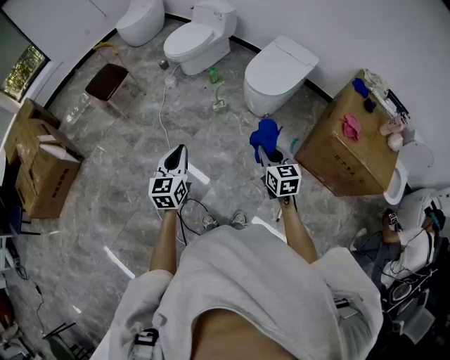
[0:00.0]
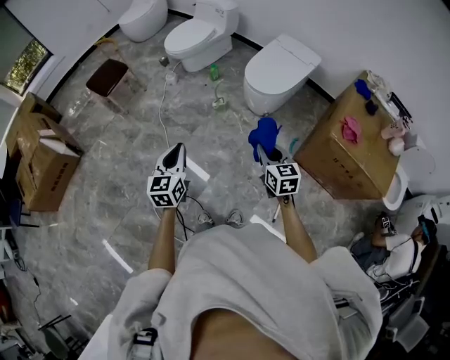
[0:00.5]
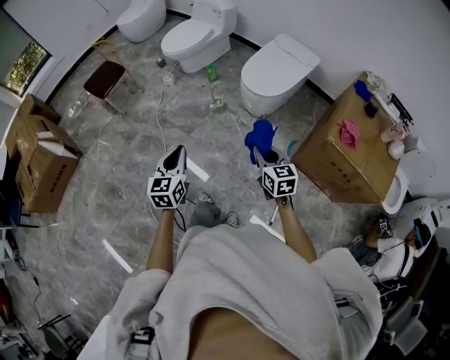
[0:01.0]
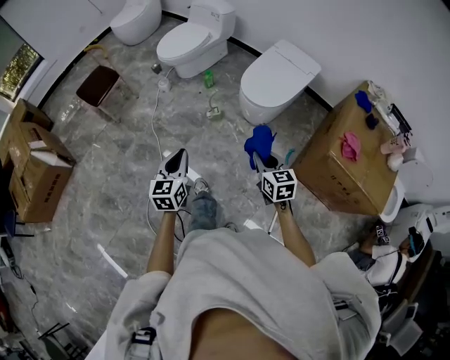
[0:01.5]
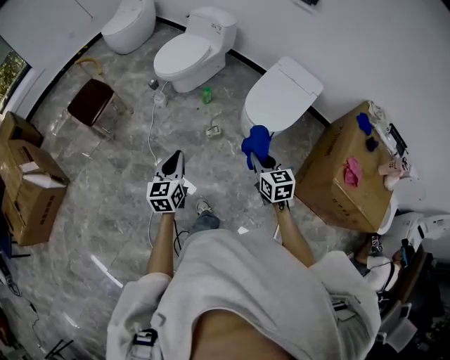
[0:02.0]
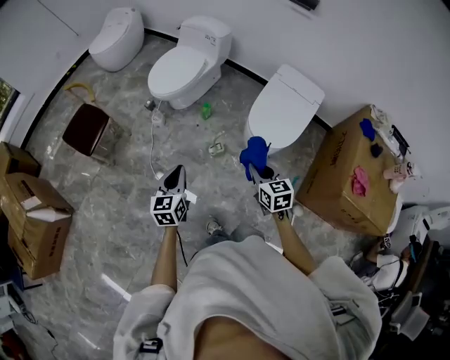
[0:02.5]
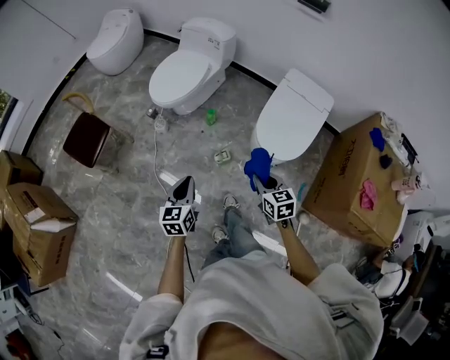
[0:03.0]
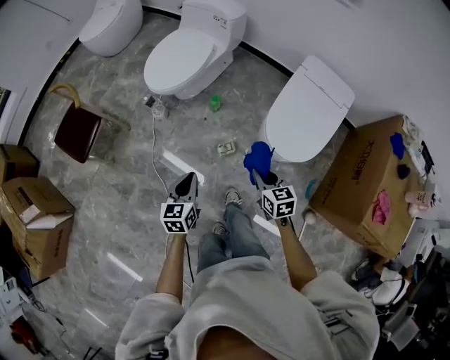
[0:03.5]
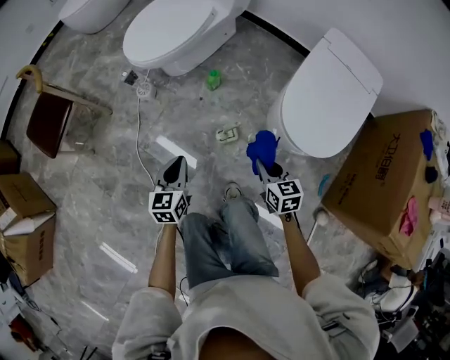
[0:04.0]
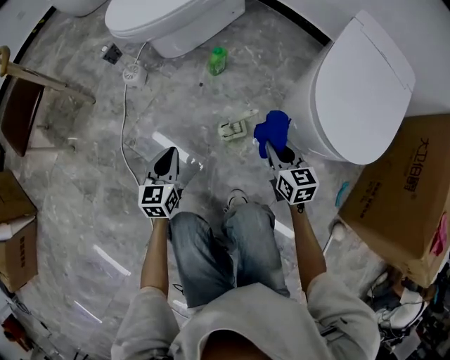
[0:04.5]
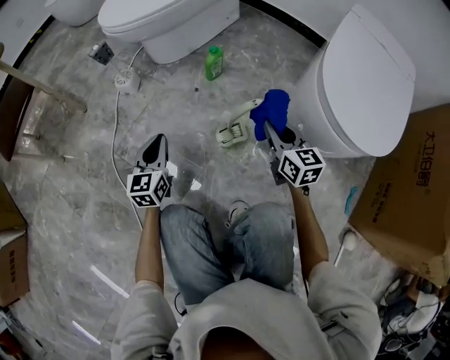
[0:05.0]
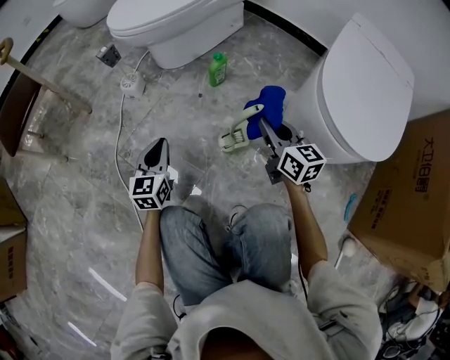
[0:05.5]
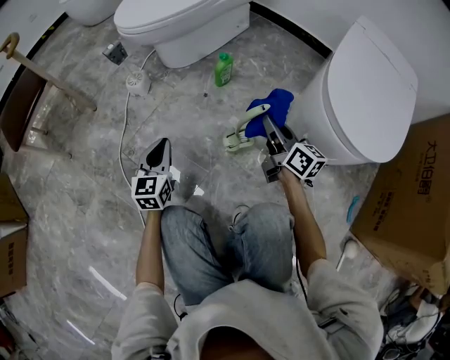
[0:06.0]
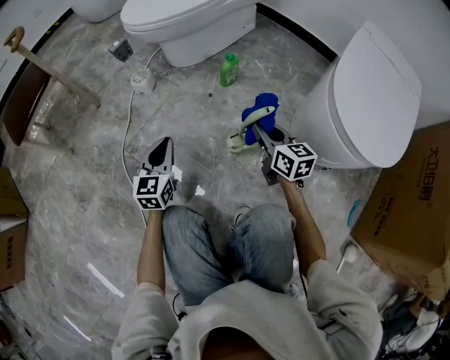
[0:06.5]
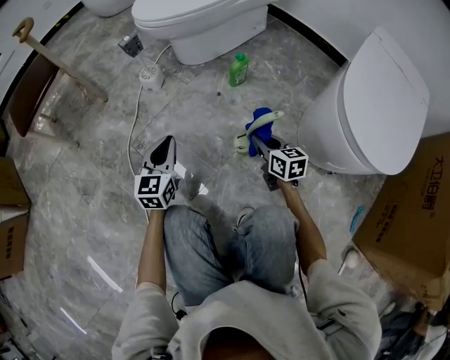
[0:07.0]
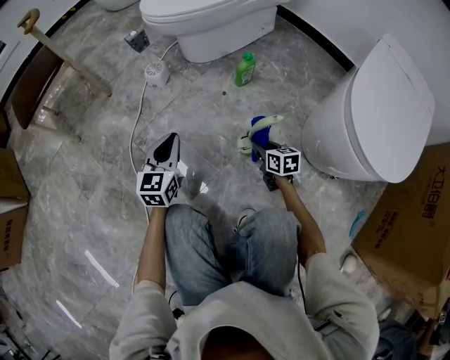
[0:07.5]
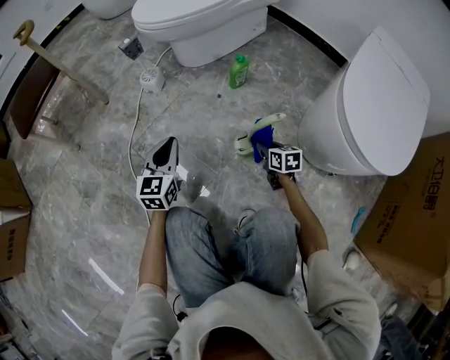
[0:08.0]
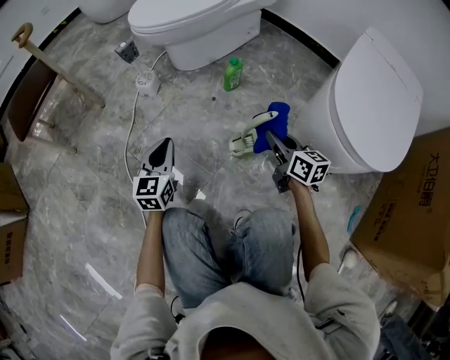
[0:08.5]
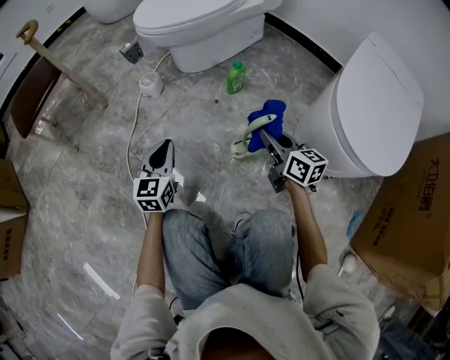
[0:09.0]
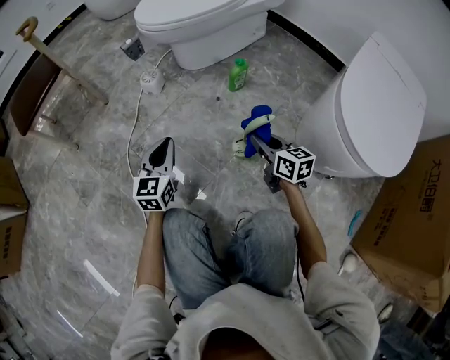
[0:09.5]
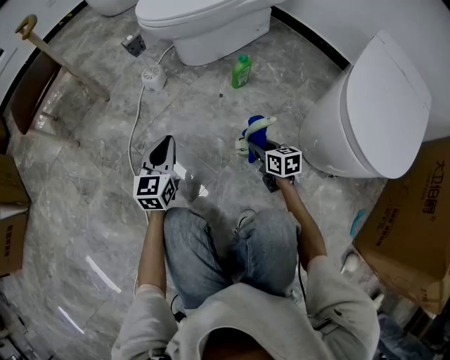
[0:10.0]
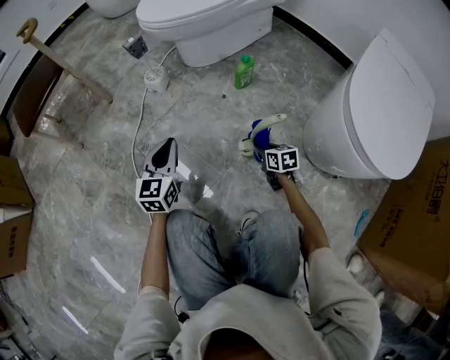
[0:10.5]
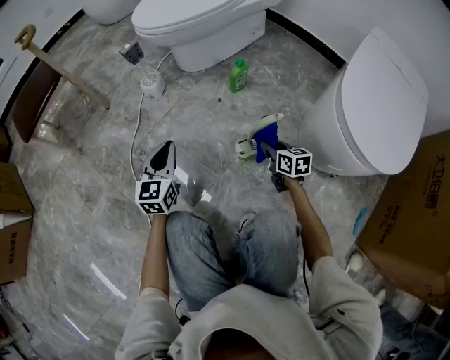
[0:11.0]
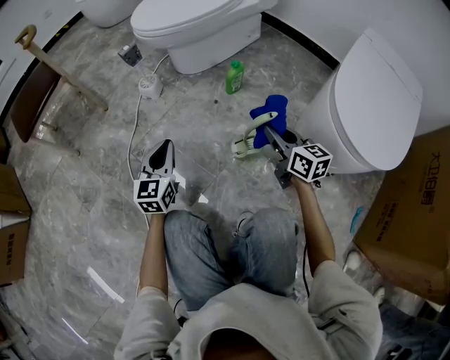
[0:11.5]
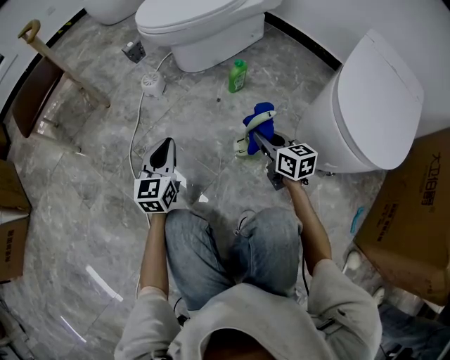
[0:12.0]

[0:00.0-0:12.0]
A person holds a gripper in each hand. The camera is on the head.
0:00.0 to 0:02.0: Both grippers move forward, some 25 cm.
0:02.0 to 0:04.0: The two grippers go approximately 40 cm downward and forward.
0:04.0 to 0:06.0: The right gripper travels downward and forward by roughly 20 cm, and points its fingers about 30 degrees further upward, while the left gripper shifts some 25 cm downward.
0:06.0 to 0:08.0: The right gripper shifts about 20 cm downward, and tilts its fingers some 40 degrees downward.
0:08.0 to 0:10.0: The right gripper moves roughly 20 cm upward and comes back.
0:10.0 to 0:12.0: The right gripper goes up and down, some 25 cm each way, reversing 2 times.

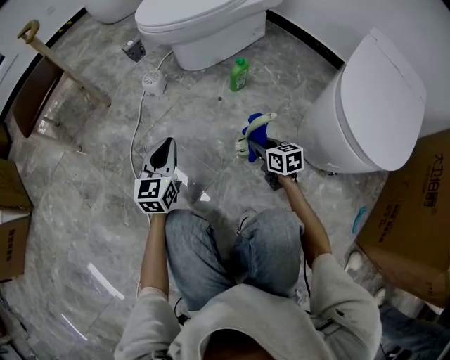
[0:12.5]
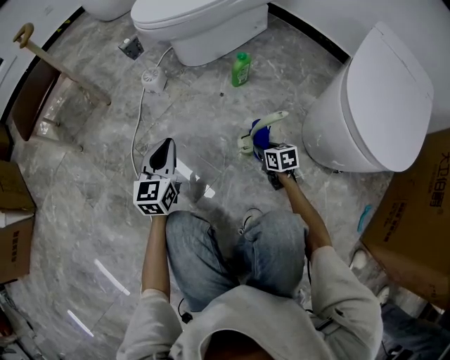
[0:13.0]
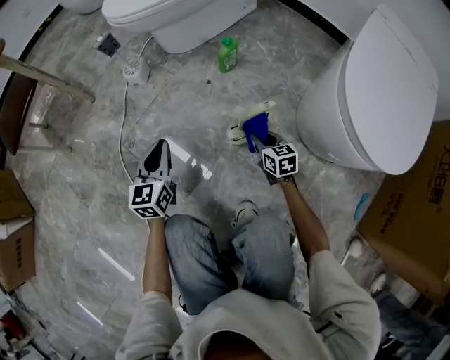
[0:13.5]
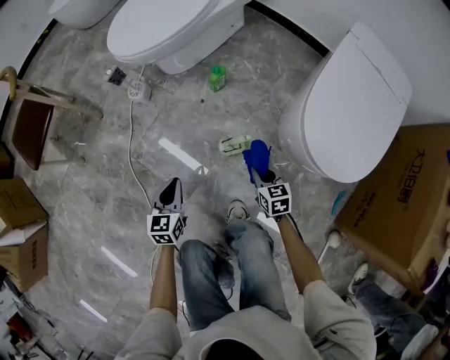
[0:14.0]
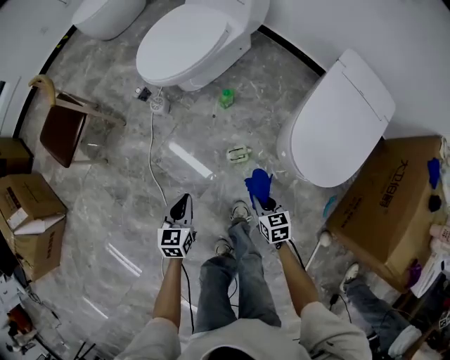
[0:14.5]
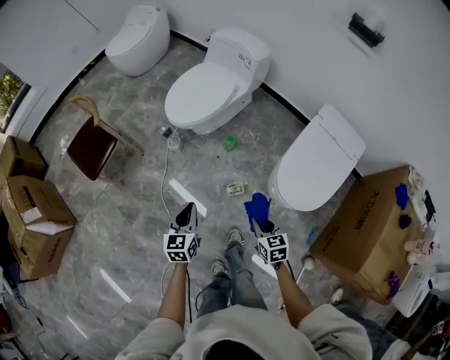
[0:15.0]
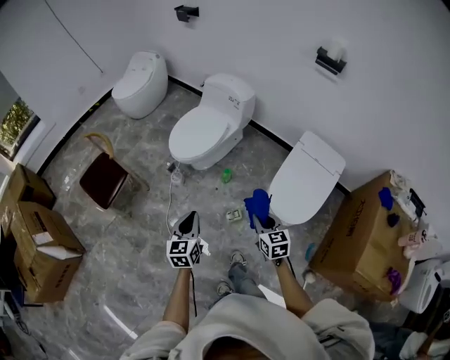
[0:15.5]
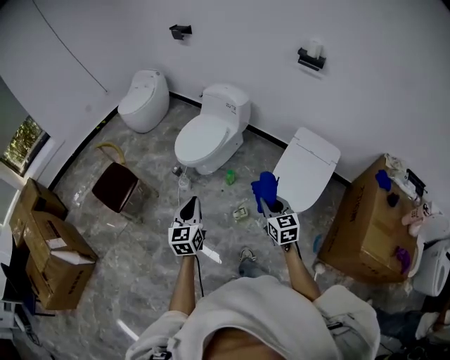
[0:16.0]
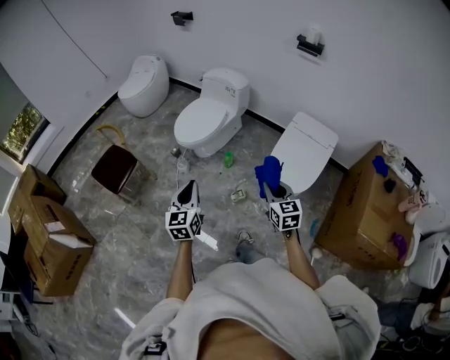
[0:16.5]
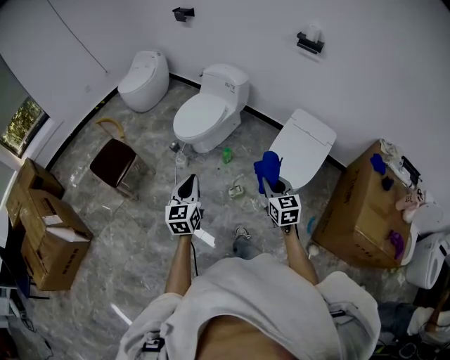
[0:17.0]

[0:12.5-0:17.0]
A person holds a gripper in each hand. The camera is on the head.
0:12.5 to 0:14.5: Both grippers move upward and backward, some 25 cm. The left gripper rotates approximately 20 degrees.
0:14.5 to 0:17.0: Both grippers travel together upward, approximately 40 cm. The right gripper turns by roughly 30 degrees. The left gripper rotates about 30 degrees.

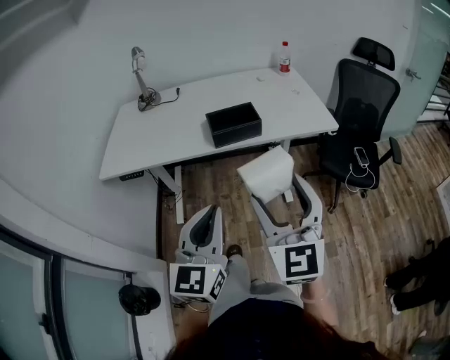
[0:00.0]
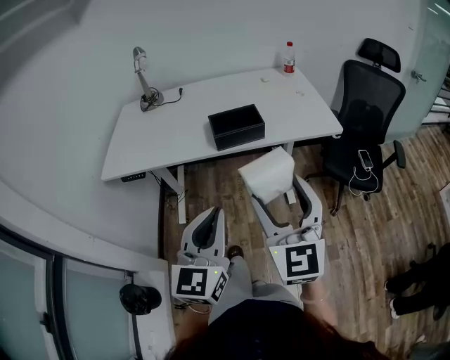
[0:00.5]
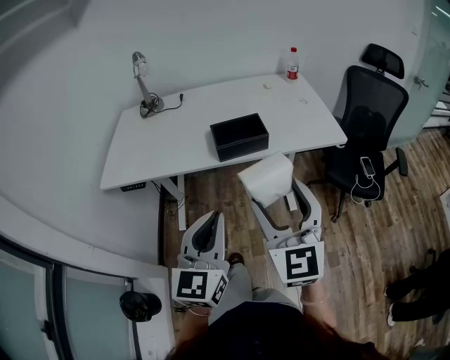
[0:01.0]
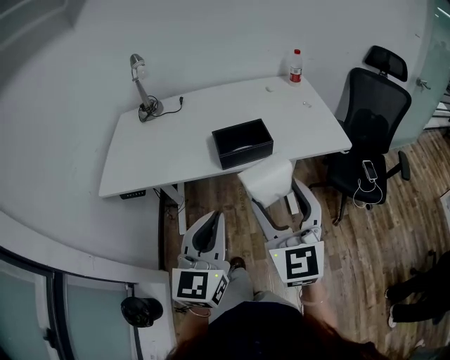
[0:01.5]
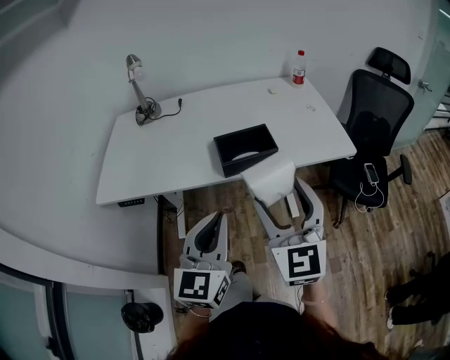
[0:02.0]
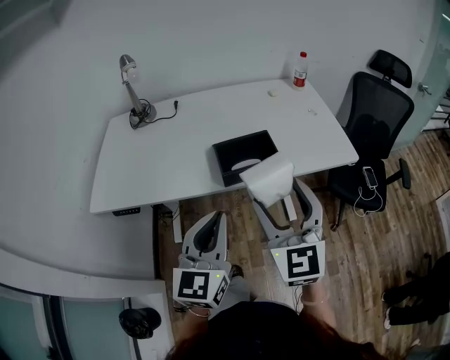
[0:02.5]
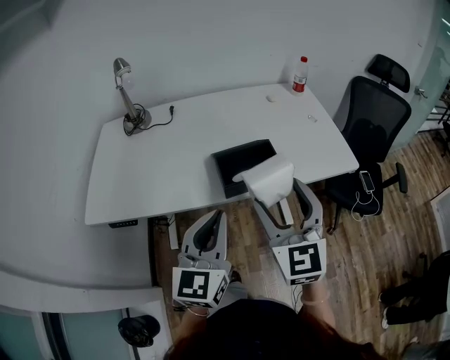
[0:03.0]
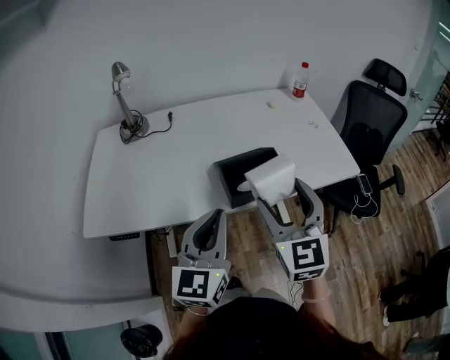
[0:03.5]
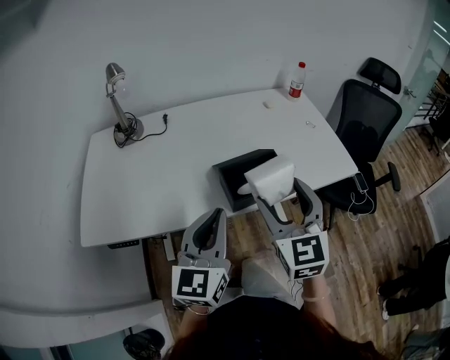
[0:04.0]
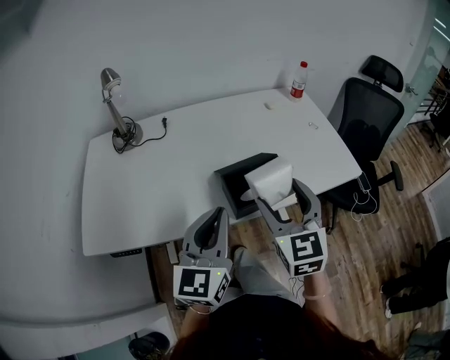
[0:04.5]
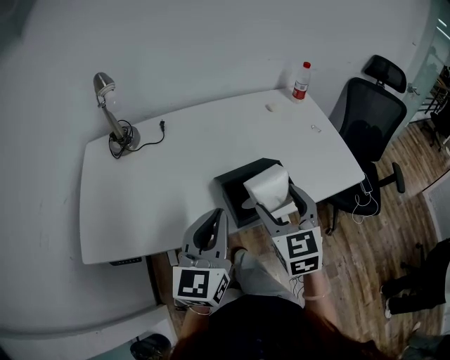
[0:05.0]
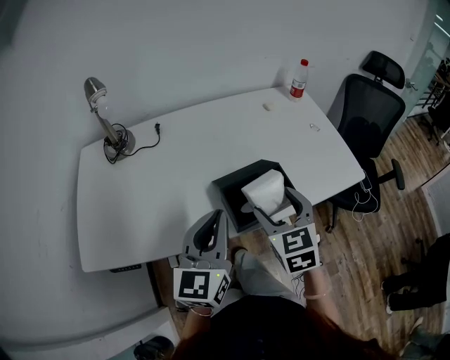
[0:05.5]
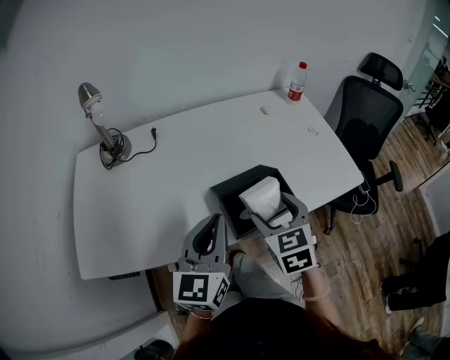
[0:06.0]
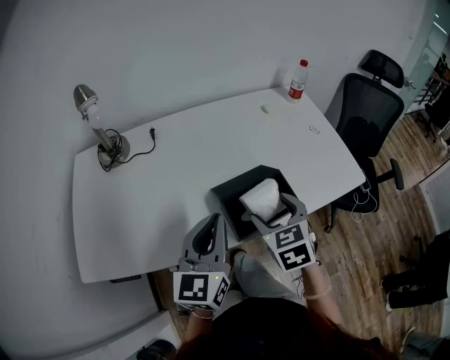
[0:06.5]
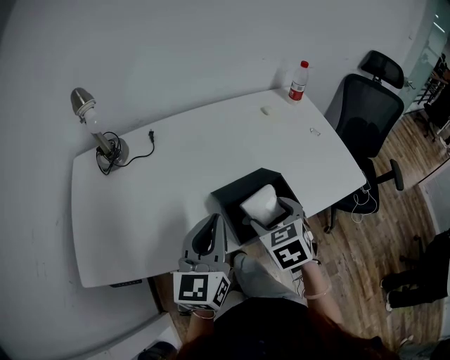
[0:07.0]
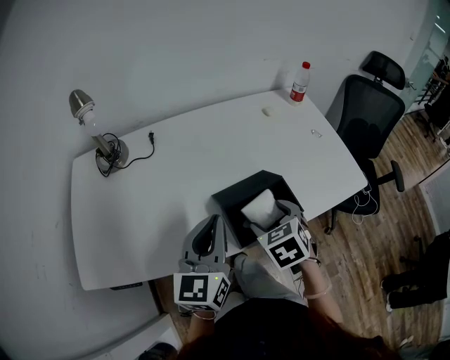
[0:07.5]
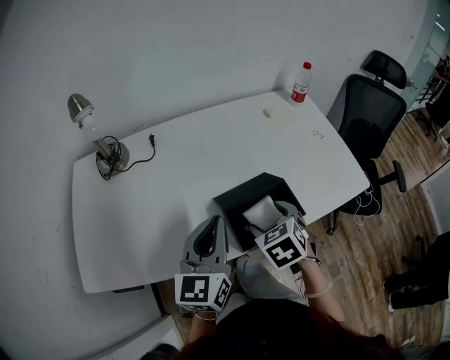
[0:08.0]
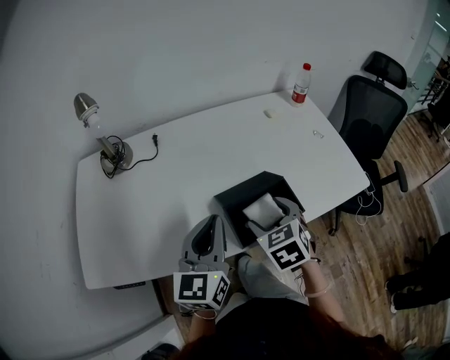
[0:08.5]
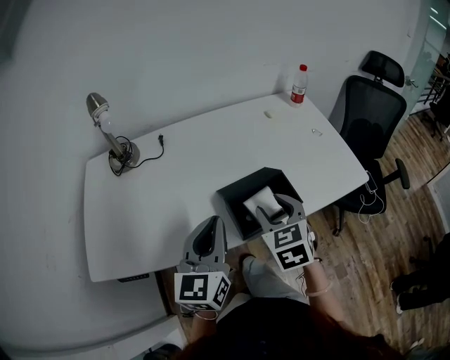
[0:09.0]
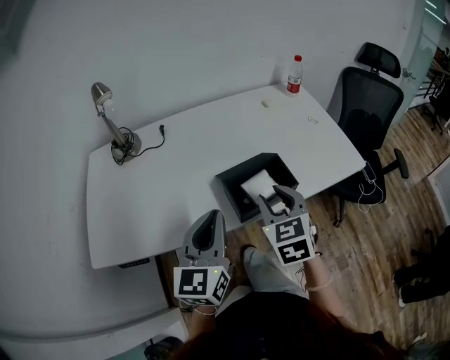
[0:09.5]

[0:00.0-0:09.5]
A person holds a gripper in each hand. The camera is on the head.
0:00.0 to 0:02.0: The grippers both shift forward by about 15 cm.
0:02.0 to 0:04.0: The right gripper goes about 15 cm forward, while the left gripper moves forward and to the left, about 15 cm.
0:04.0 to 0:05.5: The right gripper heads downward and forward, covering roughly 10 cm. The left gripper heads forward, covering some 10 cm.
0:05.5 to 0:07.5: The left gripper shifts by approximately 5 cm. Meanwhile the right gripper moves downward, roughly 5 cm, and turns by about 20 degrees.
0:07.5 to 0:09.5: The left gripper heads backward, covering roughly 10 cm; the right gripper shifts roughly 5 cm upward, rotates about 20 degrees, and closes.

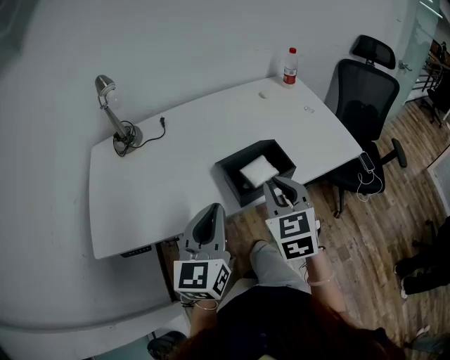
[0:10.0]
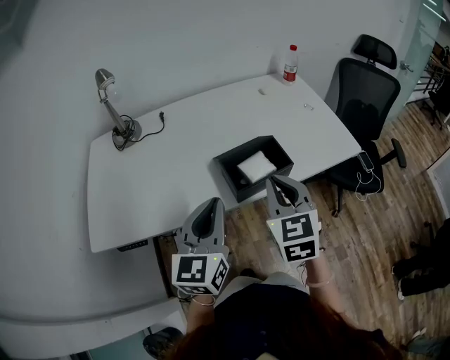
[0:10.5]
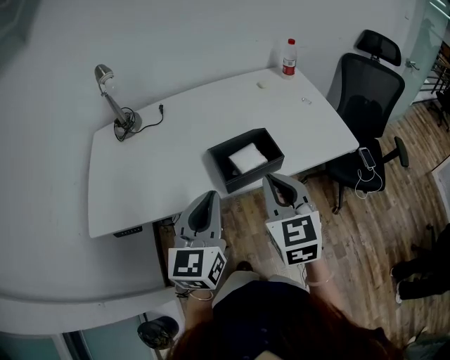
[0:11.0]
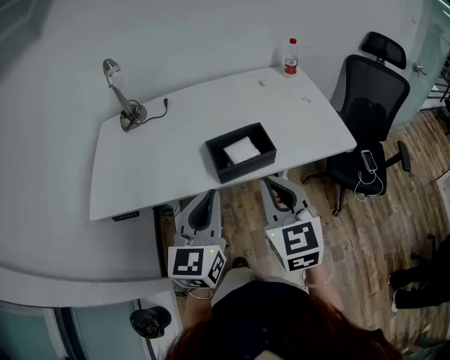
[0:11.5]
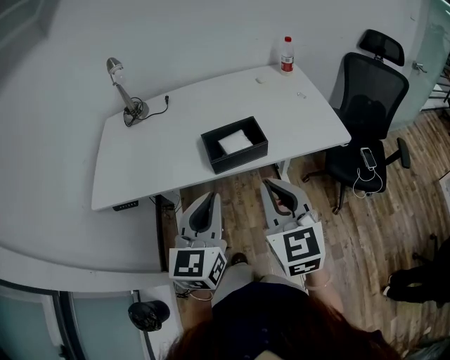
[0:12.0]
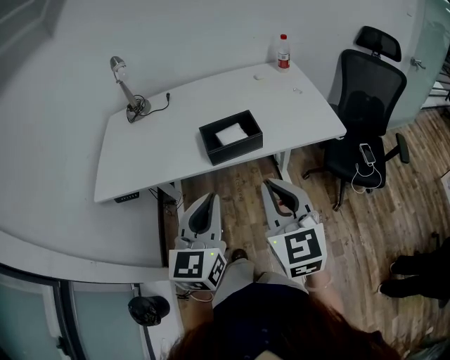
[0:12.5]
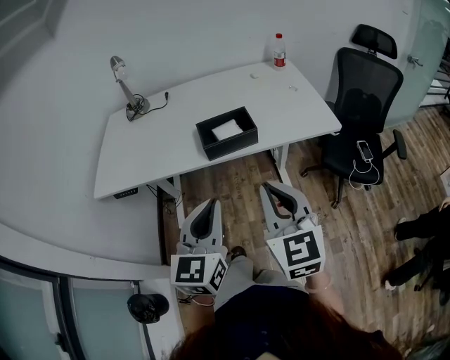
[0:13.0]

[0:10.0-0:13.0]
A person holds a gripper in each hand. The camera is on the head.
0:10.0 to 0:11.5: The left gripper shifts approximately 10 cm to the right and backward, while the right gripper shifts roughly 10 cm backward.
0:11.5 to 0:13.0: Both grippers move backward, approximately 15 cm.
